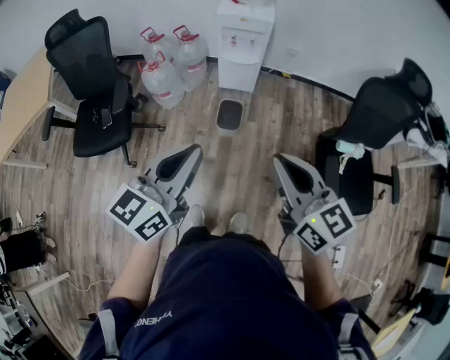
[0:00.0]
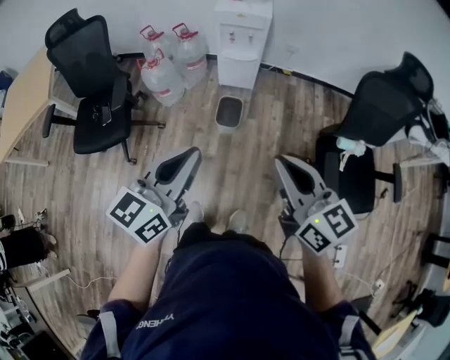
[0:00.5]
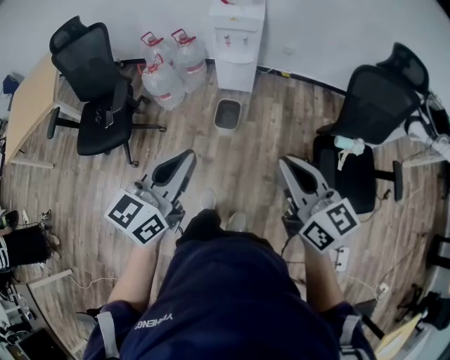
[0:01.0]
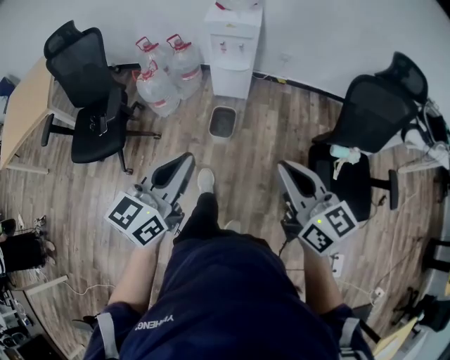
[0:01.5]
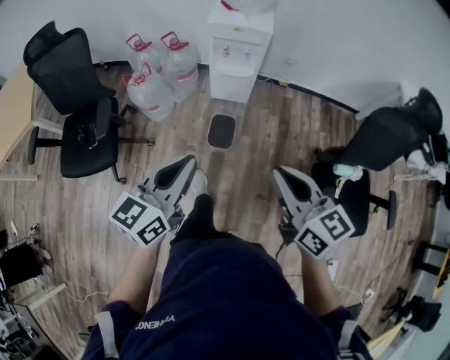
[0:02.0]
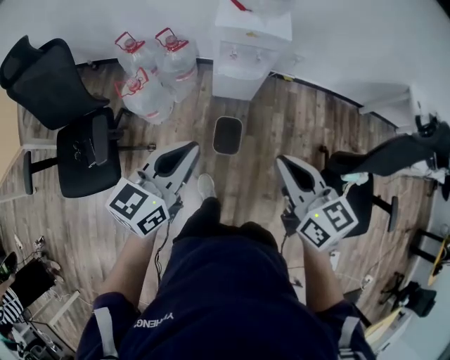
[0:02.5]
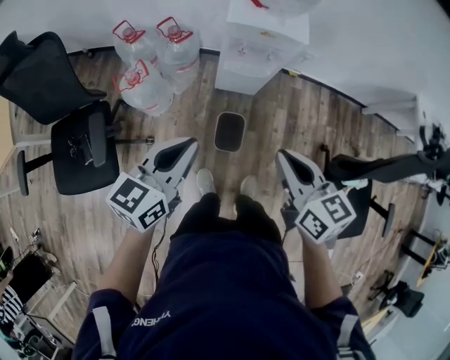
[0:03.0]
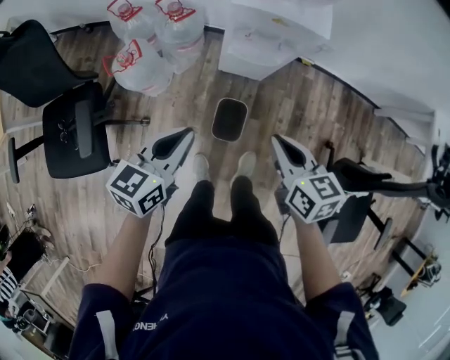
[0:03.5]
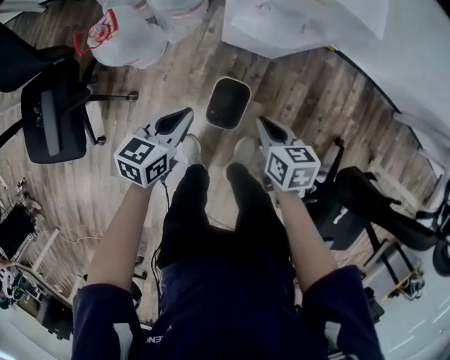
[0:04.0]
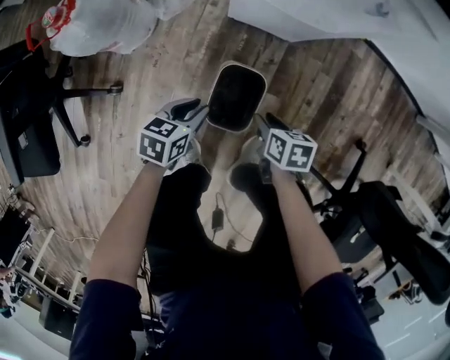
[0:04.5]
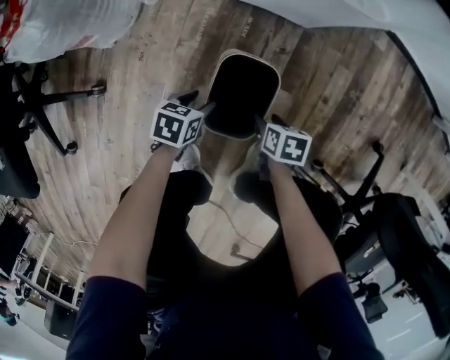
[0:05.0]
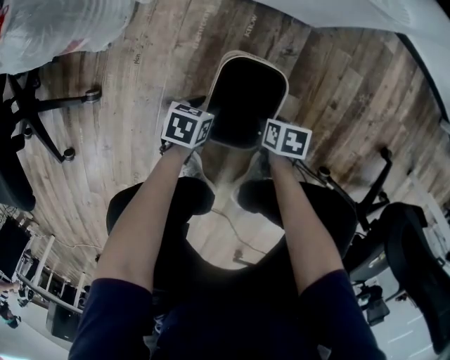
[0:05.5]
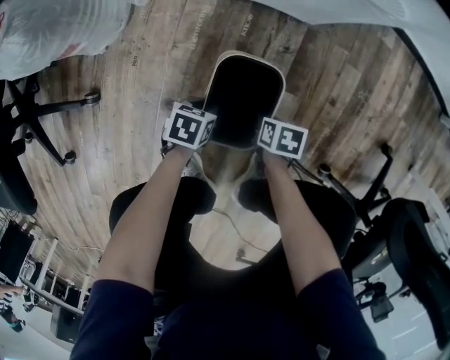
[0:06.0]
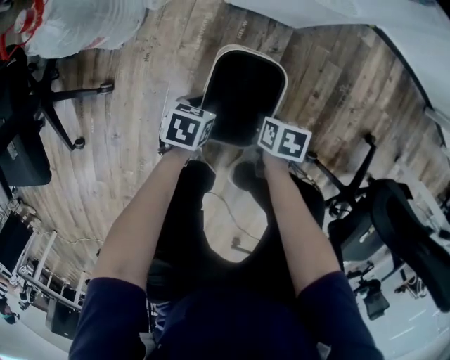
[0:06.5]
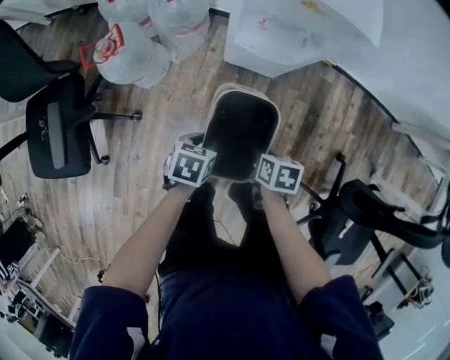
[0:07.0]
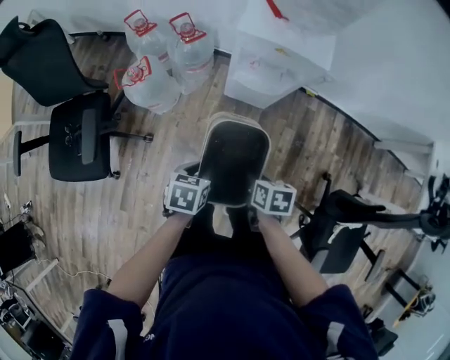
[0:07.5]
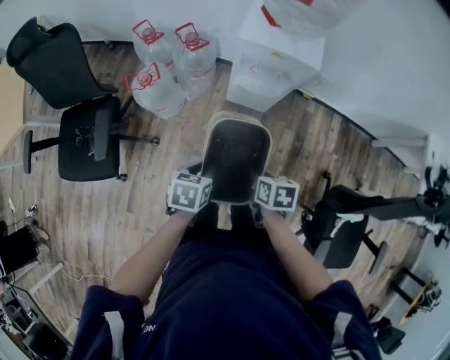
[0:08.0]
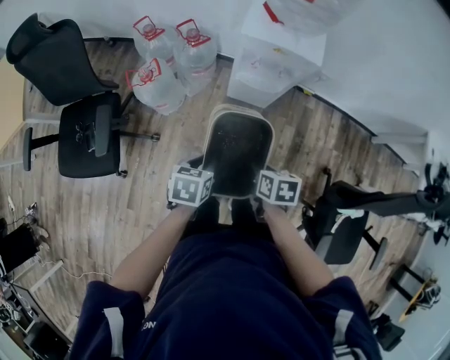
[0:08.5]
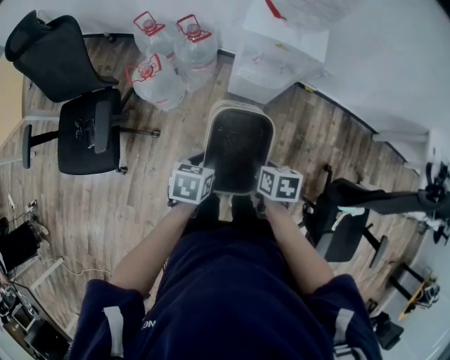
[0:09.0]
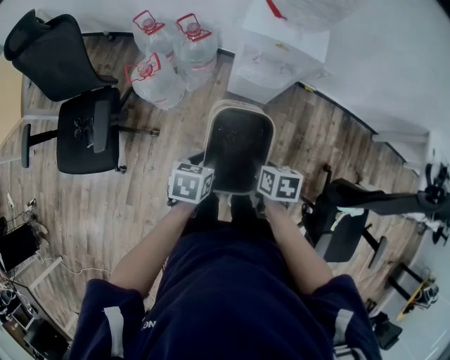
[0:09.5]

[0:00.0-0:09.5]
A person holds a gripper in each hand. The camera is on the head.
0:00.0 to 0:02.0: Both grippers travel together forward and downward, roughly 15 cm.
0:02.0 to 0:04.0: The two grippers go roughly 50 cm downward and forward. The right gripper points its fingers roughly 40 degrees further downward. The left gripper turns by roughly 30 degrees.
0:04.0 to 0:05.5: Both grippers move downward, about 50 cm. The left gripper swivels approximately 30 degrees, and opens. The right gripper turns by approximately 30 degrees, and opens its fingers.
0:05.5 to 0:07.5: Both grippers travel together upward, roughly 60 cm. The left gripper closes up; the right gripper closes up.
0:07.5 to 0:09.5: The two grippers go about 5 cm upward.

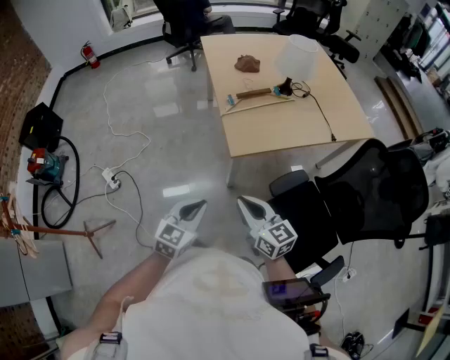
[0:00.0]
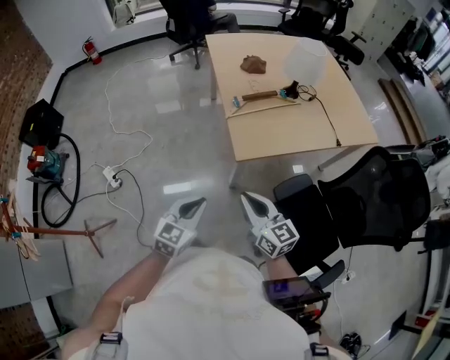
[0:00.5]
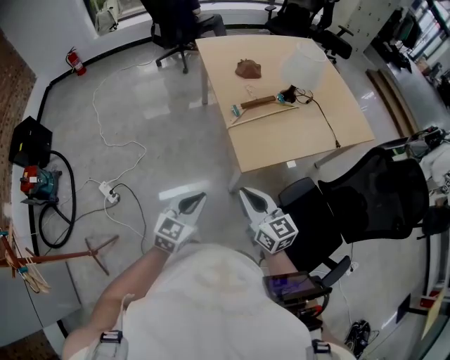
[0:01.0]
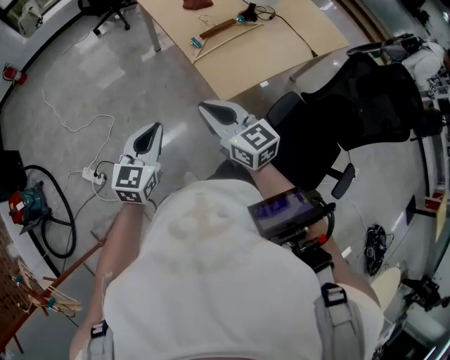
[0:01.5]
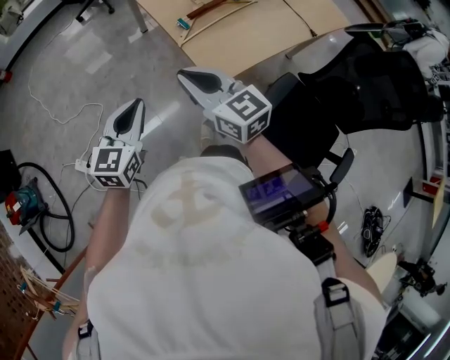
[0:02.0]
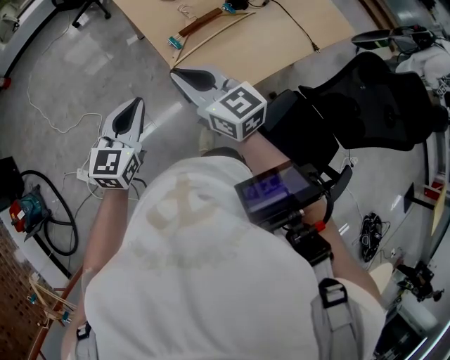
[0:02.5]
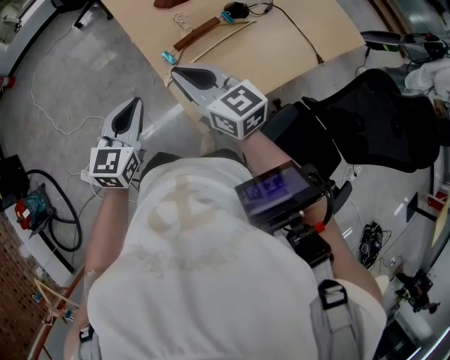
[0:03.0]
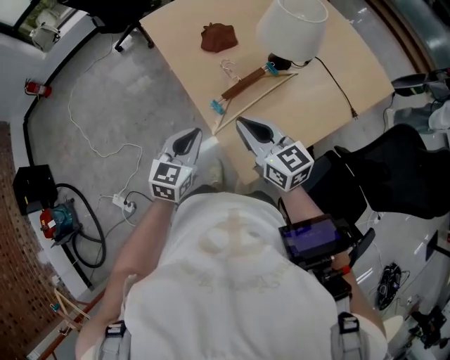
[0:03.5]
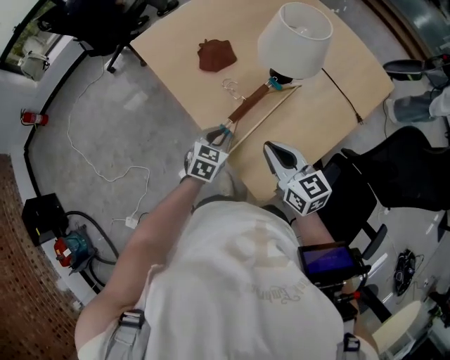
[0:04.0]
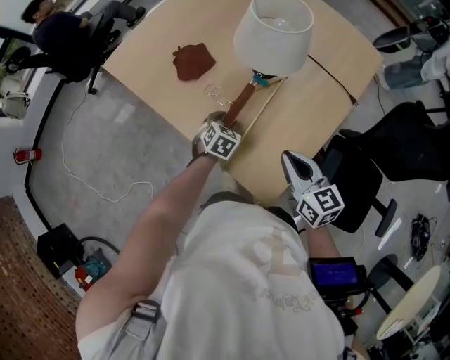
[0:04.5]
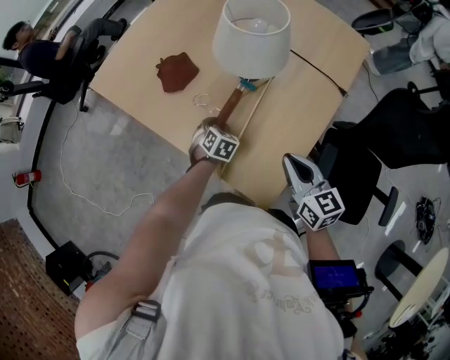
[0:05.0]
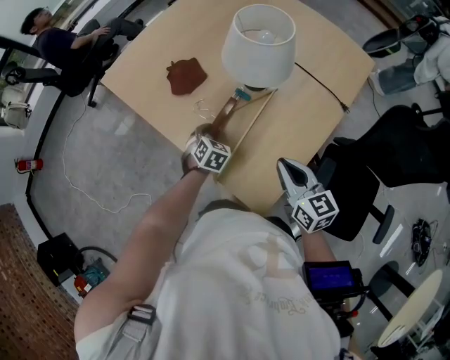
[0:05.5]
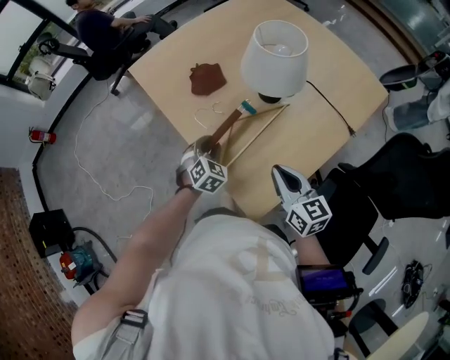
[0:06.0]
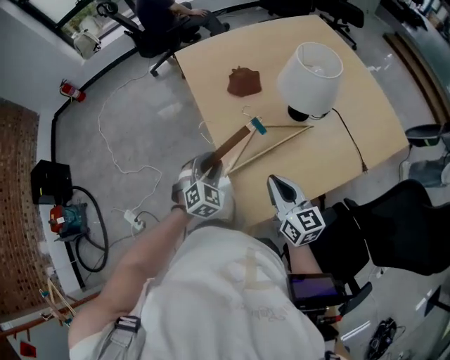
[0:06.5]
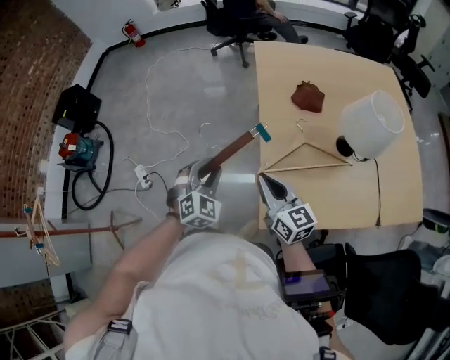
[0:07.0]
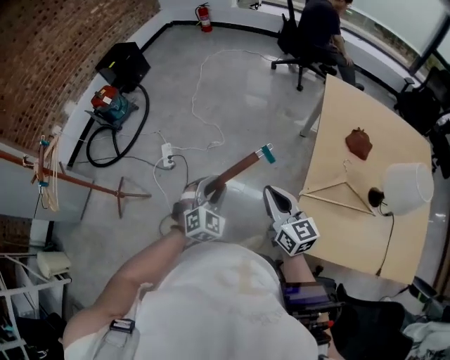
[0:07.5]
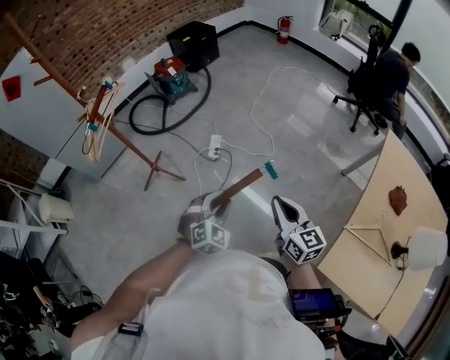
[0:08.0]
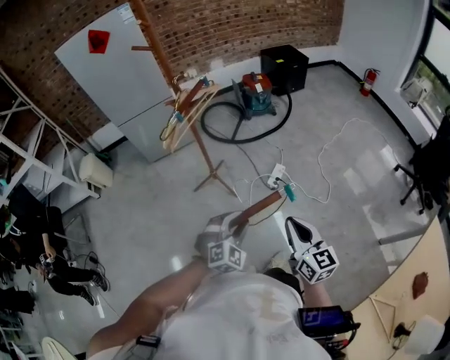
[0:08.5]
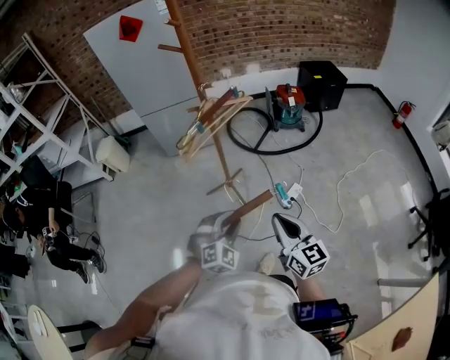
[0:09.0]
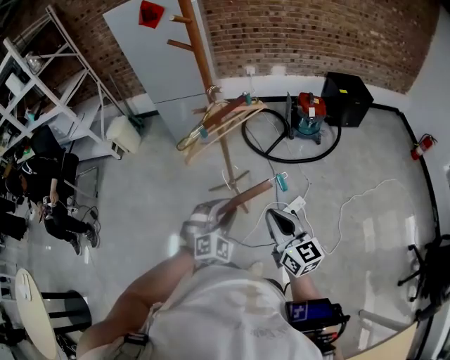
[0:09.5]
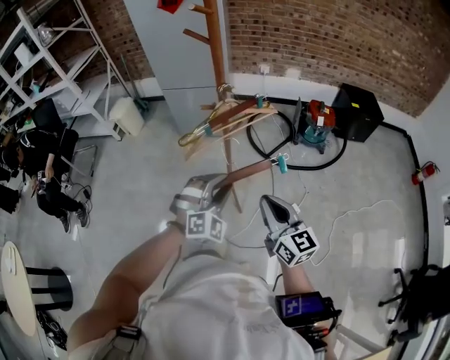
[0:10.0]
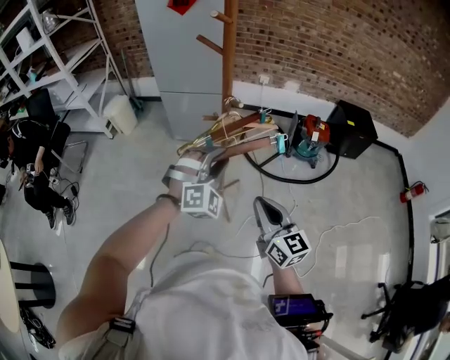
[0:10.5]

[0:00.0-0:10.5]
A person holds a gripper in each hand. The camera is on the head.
0:00.0 to 0:02.0: The two grippers go approximately 25 cm forward and to the left.
0:02.0 to 0:04.0: The right gripper moves forward and to the right, approximately 25 cm, and swivels roughly 20 degrees, while the left gripper goes about 40 cm forward, to the right and downward, and turns by roughly 30 degrees.
0:04.0 to 0:06.5: The left gripper shifts about 5 cm upward, and turns by roughly 40 degrees.
0:06.5 to 0:08.5: Both grippers are carried approximately 70 cm. The right gripper turns by approximately 90 degrees. Meanwhile the left gripper swivels roughly 80 degrees.
0:08.5 to 0:10.5: The right gripper moves some 35 cm, and rotates some 30 degrees; the left gripper shifts by roughly 40 cm, and changes its angle by about 40 degrees.

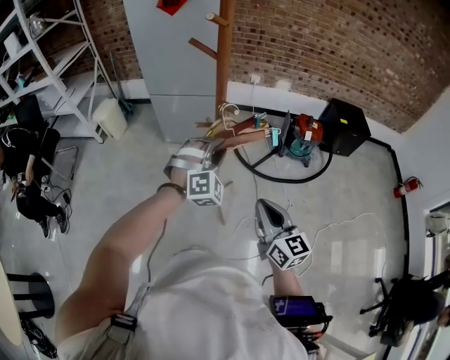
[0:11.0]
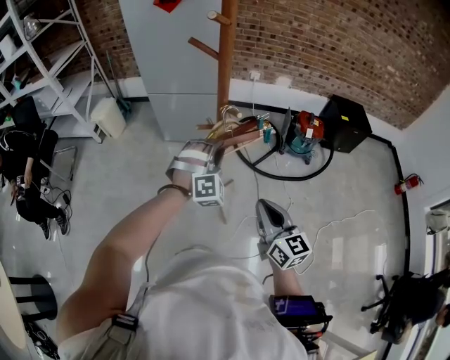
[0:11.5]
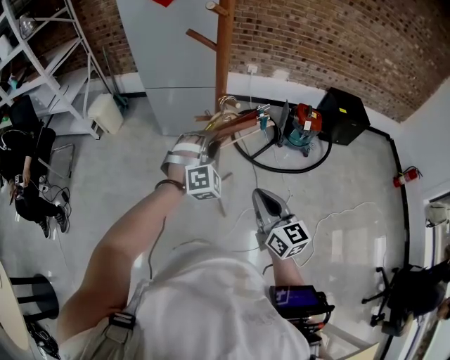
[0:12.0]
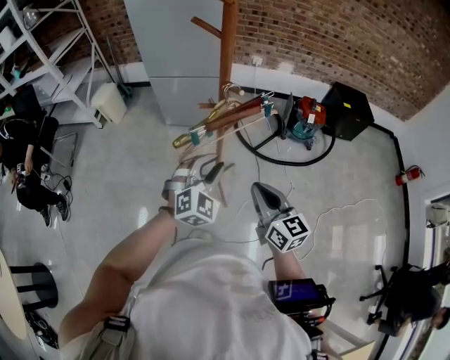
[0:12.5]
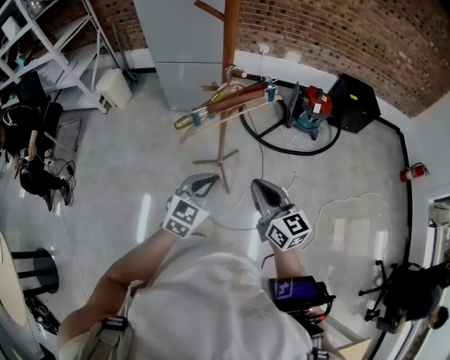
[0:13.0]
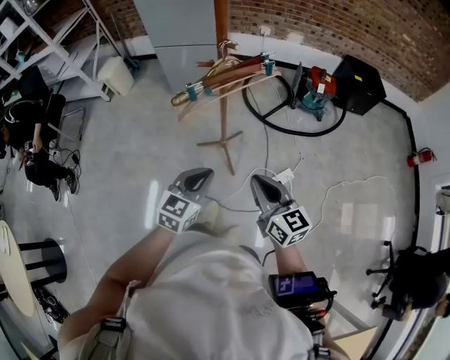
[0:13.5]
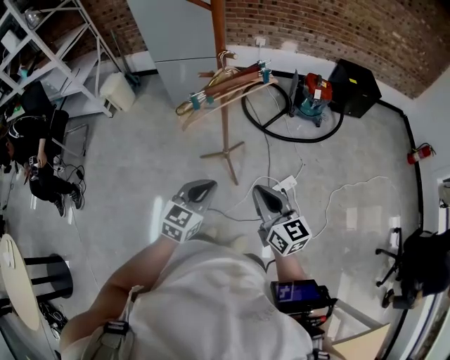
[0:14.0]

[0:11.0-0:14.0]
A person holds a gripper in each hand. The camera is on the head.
0:11.0 to 0:12.5: The left gripper shifts some 10 cm backward, and turns by some 30 degrees.
0:12.5 to 0:14.0: Both grippers move backward, some 15 cm. The left gripper rolls counterclockwise, seen from behind, by some 40 degrees, and closes its fingers.

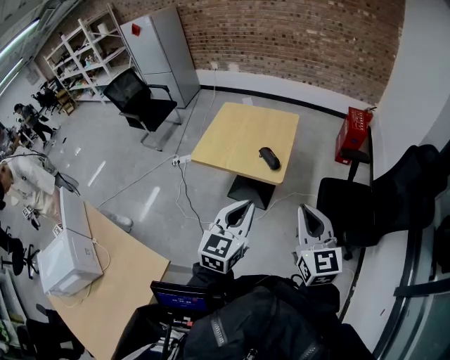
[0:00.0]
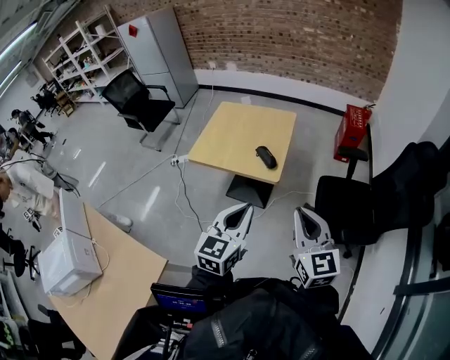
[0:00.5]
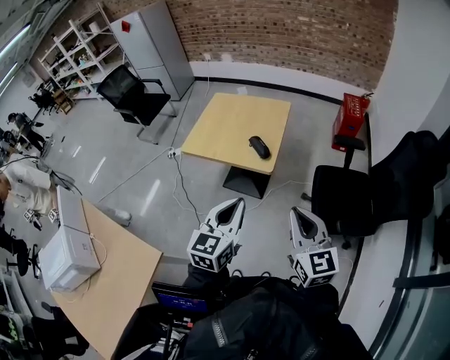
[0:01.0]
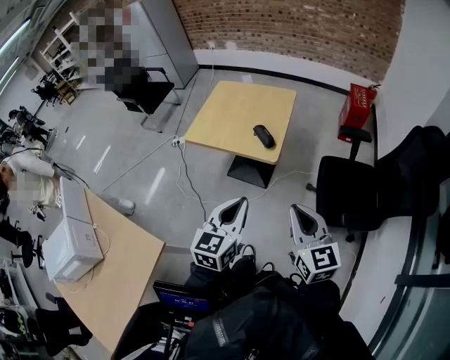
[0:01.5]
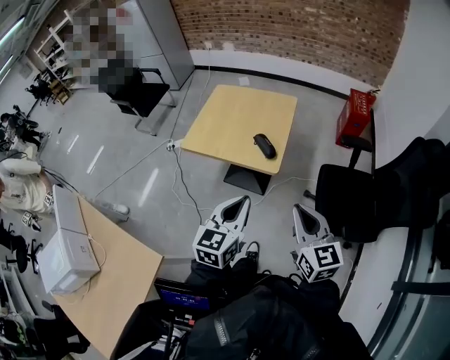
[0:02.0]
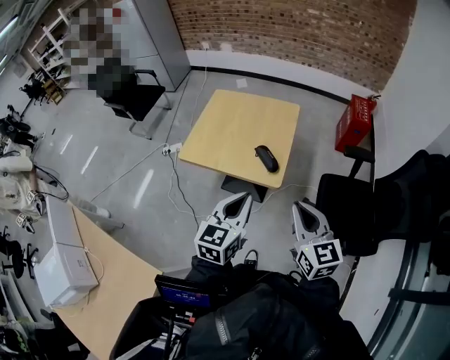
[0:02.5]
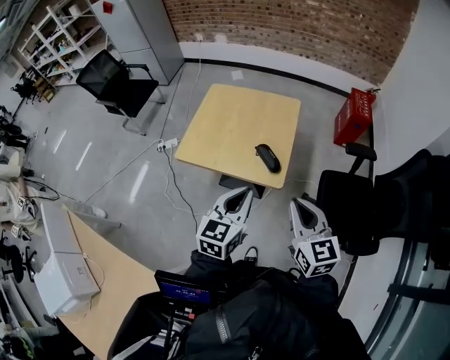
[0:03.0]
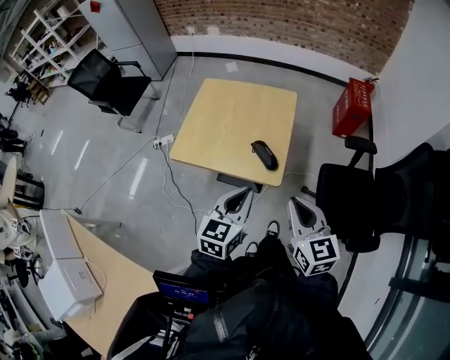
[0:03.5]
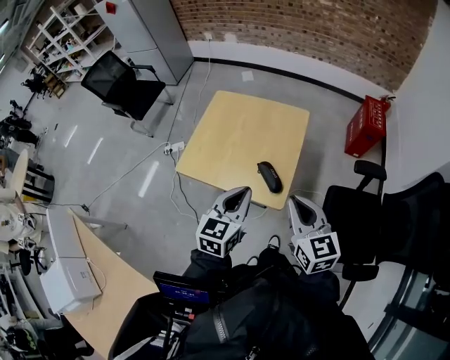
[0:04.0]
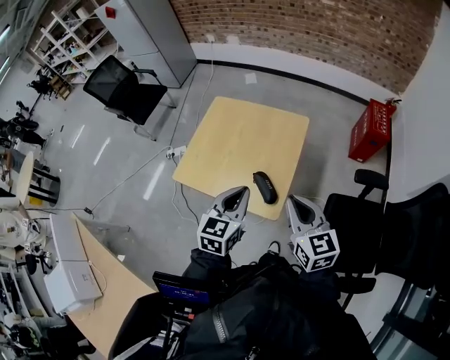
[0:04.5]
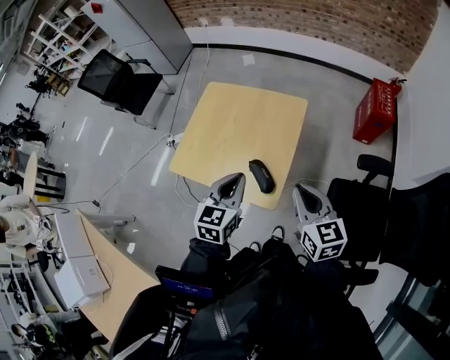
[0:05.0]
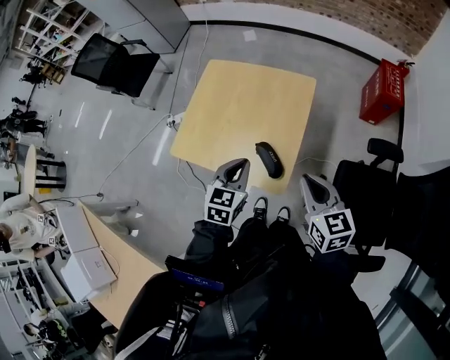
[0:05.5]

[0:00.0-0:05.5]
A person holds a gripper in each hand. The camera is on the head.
0:00.0 to 0:02.0: The right gripper shifts some 5 cm downward. The left gripper heads forward, covering about 5 cm.
0:02.0 to 0:03.5: The two grippers go about 15 cm forward.
0:03.5 to 0:05.5: The left gripper moves forward and downward, roughly 20 cm. Meanwhile the right gripper heads forward and to the right, covering approximately 20 cm.
